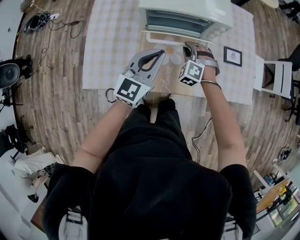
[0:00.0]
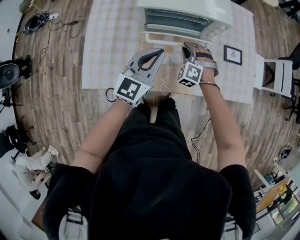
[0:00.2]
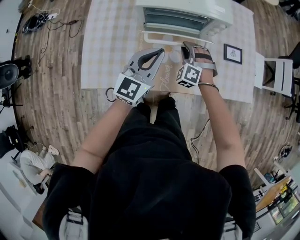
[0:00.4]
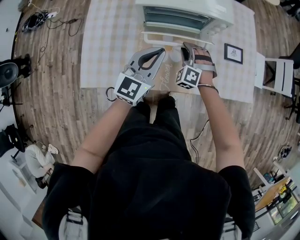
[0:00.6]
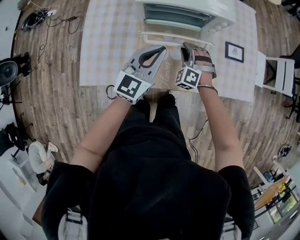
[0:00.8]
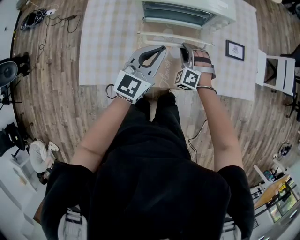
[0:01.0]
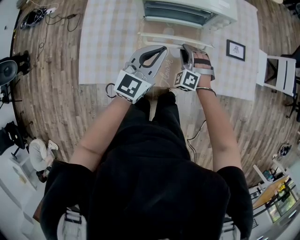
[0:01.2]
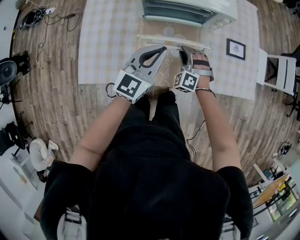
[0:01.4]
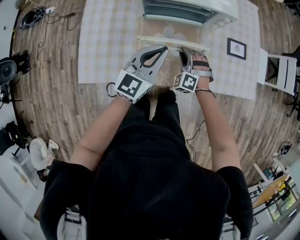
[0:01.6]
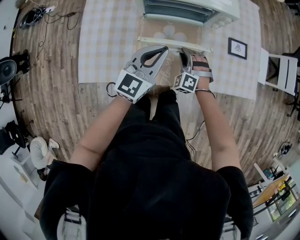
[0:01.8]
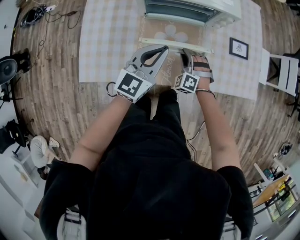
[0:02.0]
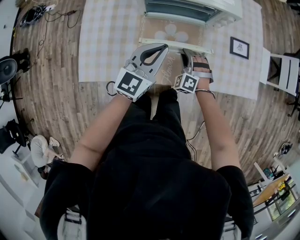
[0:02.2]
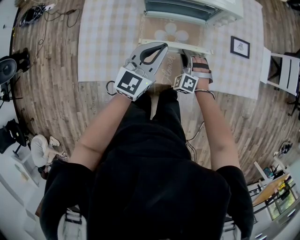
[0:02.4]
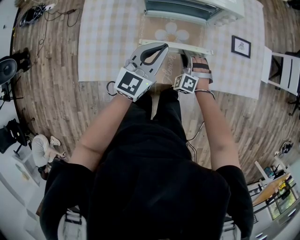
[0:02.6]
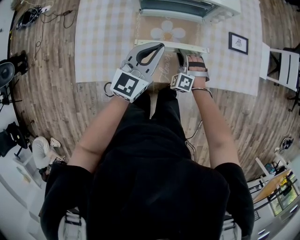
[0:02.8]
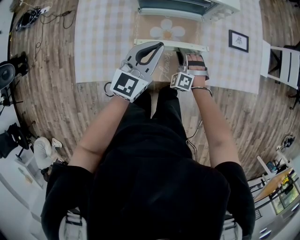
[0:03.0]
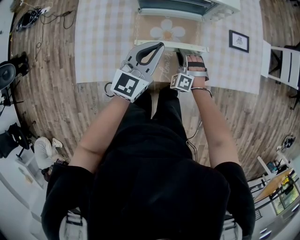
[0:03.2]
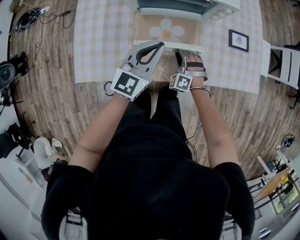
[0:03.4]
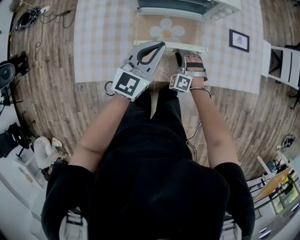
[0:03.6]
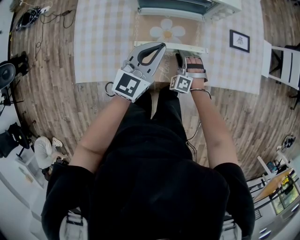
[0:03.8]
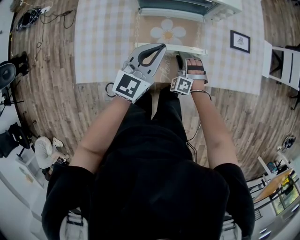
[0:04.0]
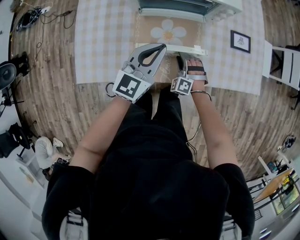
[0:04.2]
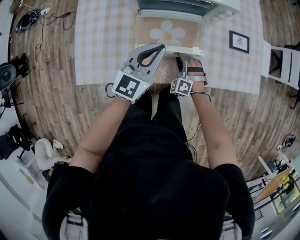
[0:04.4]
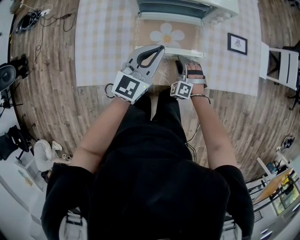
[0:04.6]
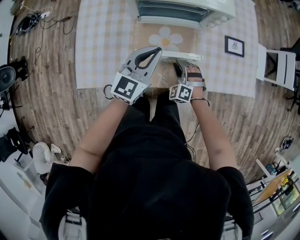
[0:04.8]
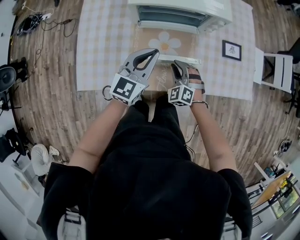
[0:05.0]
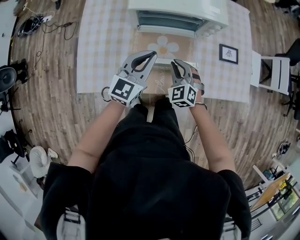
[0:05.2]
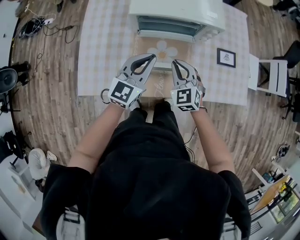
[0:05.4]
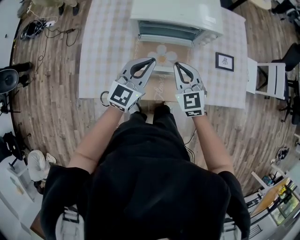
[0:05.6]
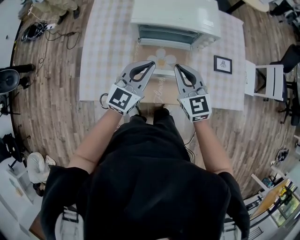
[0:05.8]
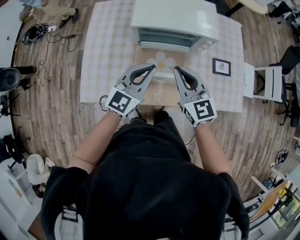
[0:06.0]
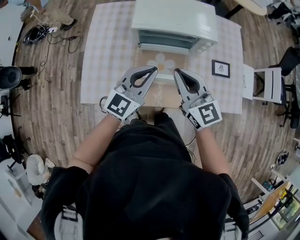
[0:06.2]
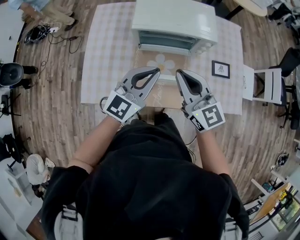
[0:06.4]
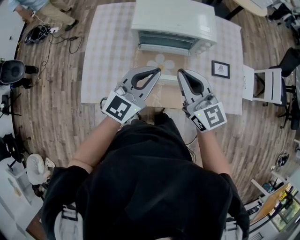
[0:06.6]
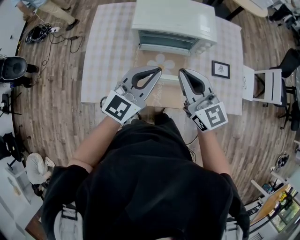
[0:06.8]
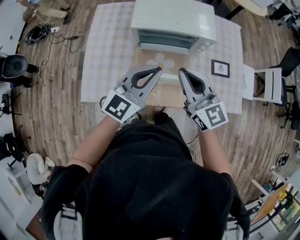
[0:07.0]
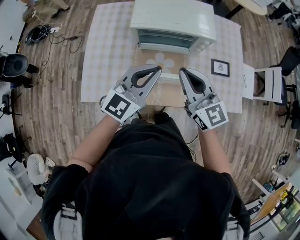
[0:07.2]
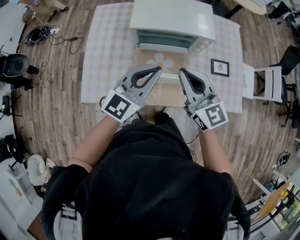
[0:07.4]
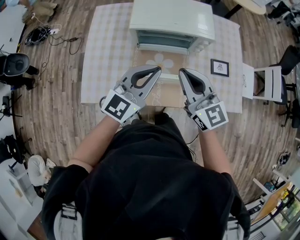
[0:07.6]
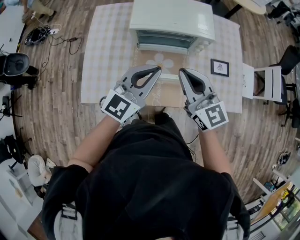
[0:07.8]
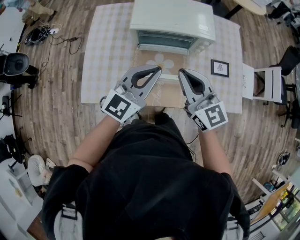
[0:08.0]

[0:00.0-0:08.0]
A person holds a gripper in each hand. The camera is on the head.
0:00.0 to 0:01.6: The right gripper goes roughly 10 cm downward and backward.
0:01.6 to 0:03.2: The right gripper heads downward, covering roughly 5 cm.
0:03.2 to 0:04.8: There are only small adjustments of the grippers.
0:04.8 to 0:06.4: The left gripper heads upward, covering roughly 15 cm. Meanwhile the right gripper heads upward, covering approximately 35 cm, points its fingers roughly 40 degrees further upward, and closes up.
0:06.4 to 0:08.0: The grippers stay close to where they were, moving slightly.

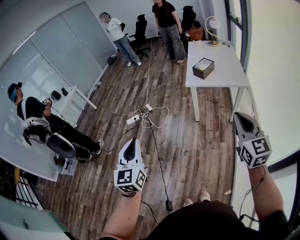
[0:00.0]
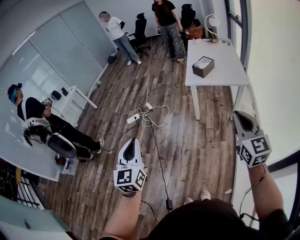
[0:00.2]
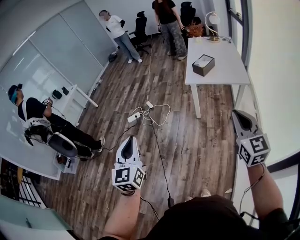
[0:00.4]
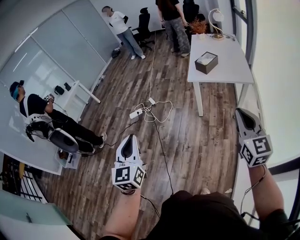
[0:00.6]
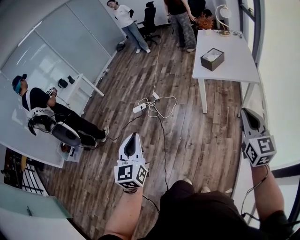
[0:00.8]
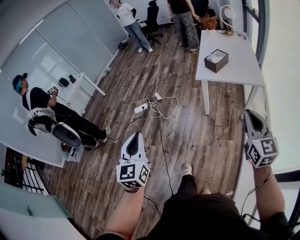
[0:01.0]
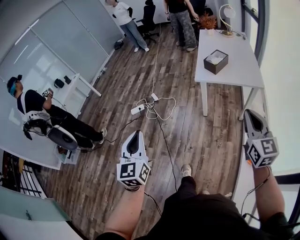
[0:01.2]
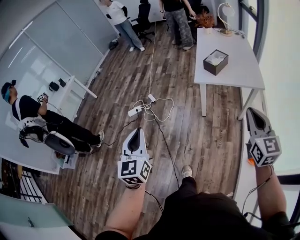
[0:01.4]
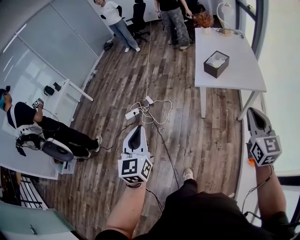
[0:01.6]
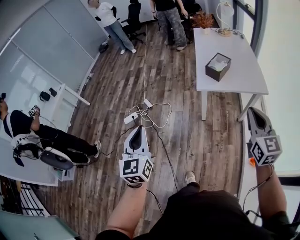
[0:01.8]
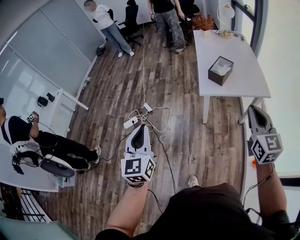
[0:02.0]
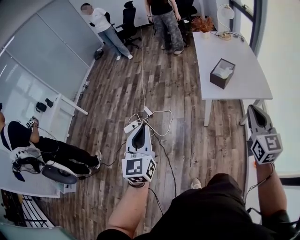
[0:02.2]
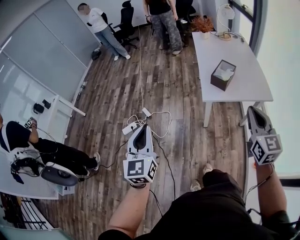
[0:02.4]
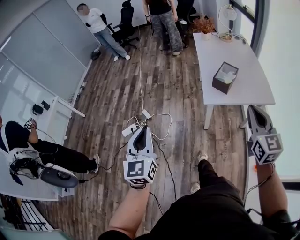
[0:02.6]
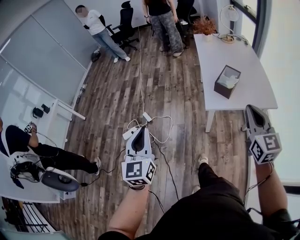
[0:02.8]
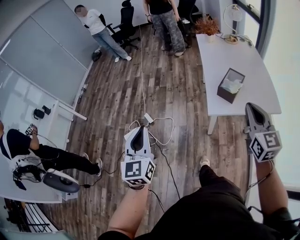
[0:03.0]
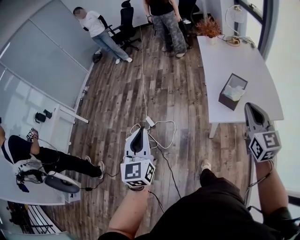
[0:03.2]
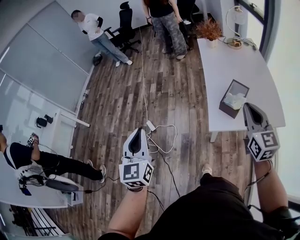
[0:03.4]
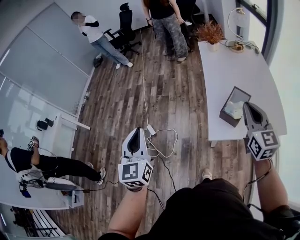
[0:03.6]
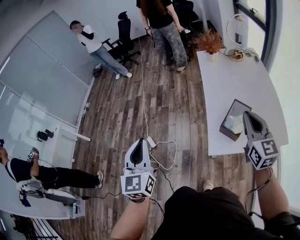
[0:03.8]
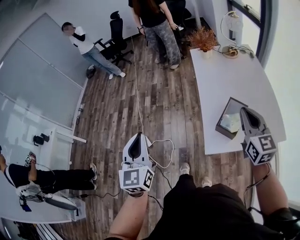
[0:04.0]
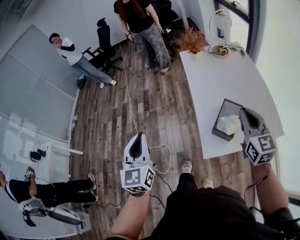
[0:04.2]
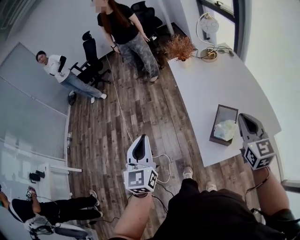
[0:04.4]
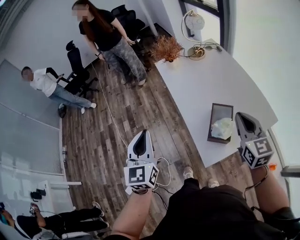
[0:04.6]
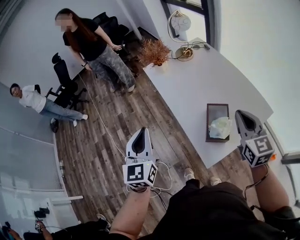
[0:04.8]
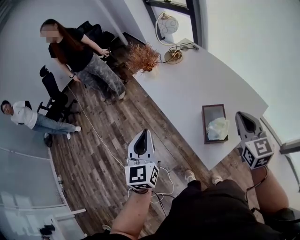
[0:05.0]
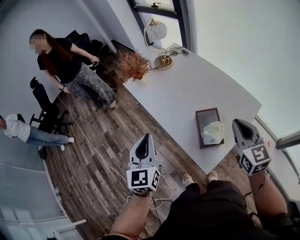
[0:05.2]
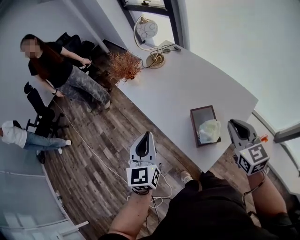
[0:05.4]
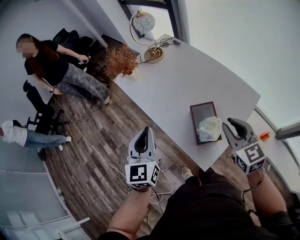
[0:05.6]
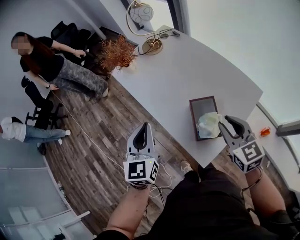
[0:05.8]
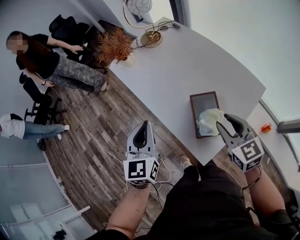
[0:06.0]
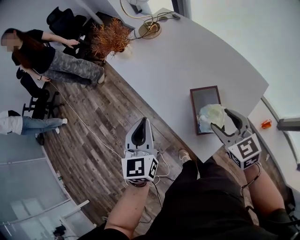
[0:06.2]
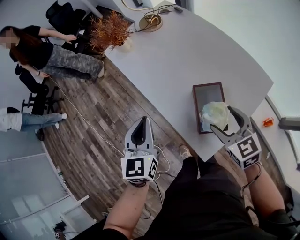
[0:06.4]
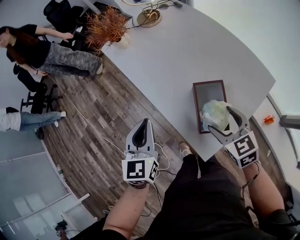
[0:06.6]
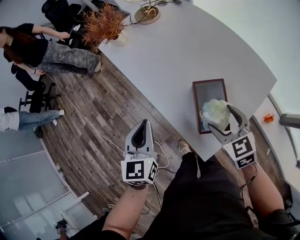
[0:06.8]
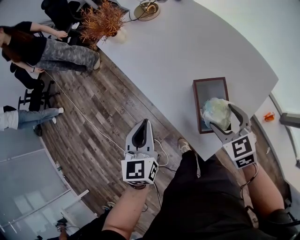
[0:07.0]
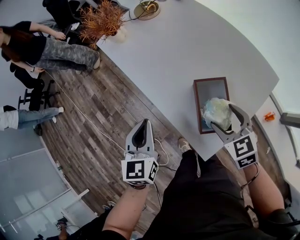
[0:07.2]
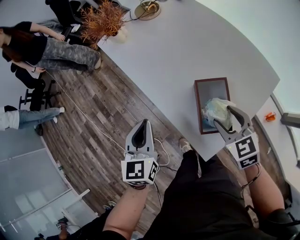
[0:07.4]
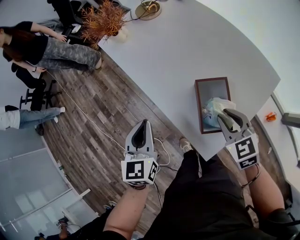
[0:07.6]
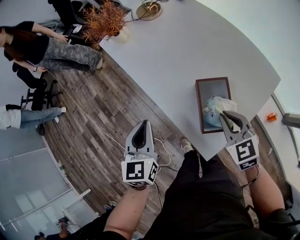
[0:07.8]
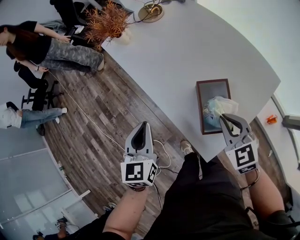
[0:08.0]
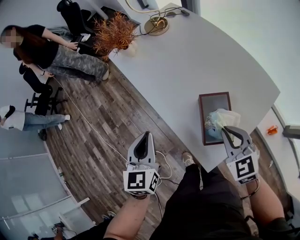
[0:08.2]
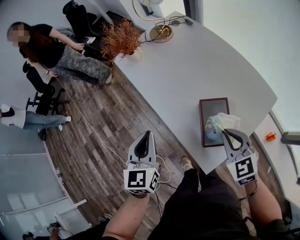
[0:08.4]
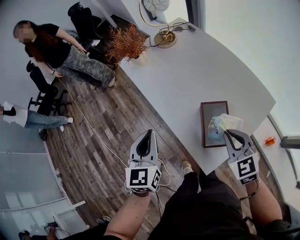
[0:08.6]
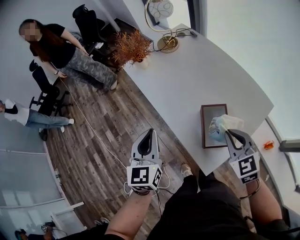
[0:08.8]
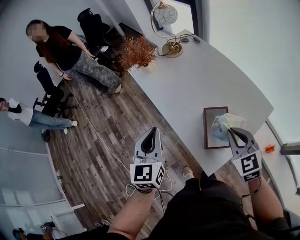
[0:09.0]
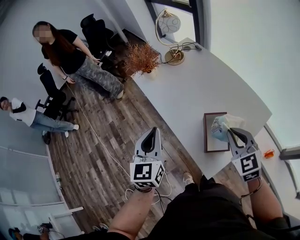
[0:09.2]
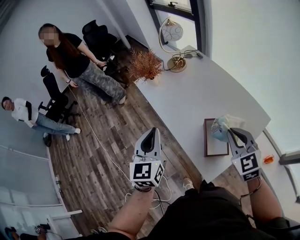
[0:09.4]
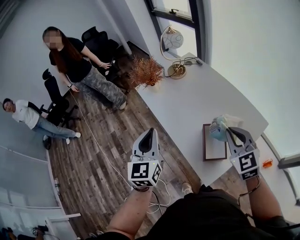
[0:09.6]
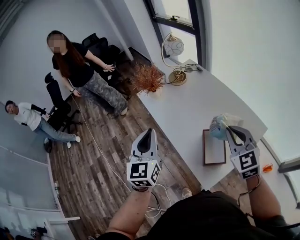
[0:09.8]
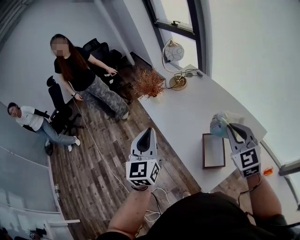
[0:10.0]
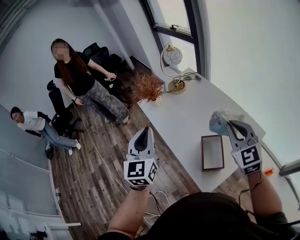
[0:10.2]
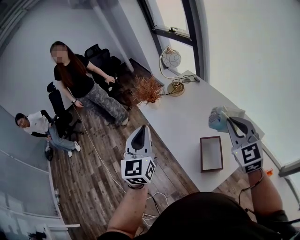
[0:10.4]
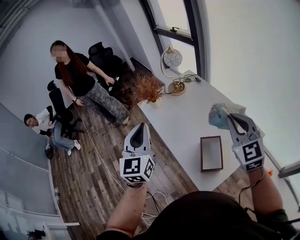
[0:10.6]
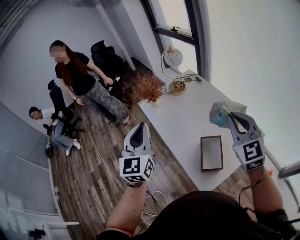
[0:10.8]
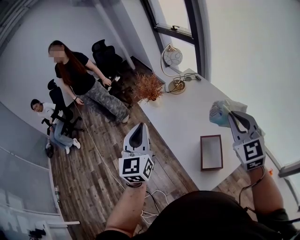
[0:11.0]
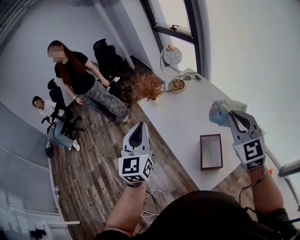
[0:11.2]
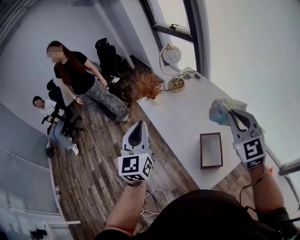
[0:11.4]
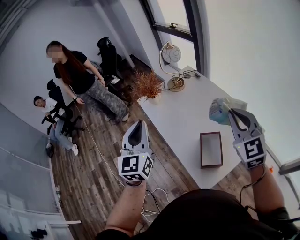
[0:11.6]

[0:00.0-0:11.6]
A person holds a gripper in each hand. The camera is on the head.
0:00.0 to 0:01.4: Both grippers travel together forward, roughly 20 cm.
0:01.4 to 0:02.8: Both grippers move forward, roughly 30 cm.
0:02.8 to 0:04.4: The two grippers go some 35 cm forward.
0:04.4 to 0:05.8: The right gripper is displaced downward by some 10 cm; the left gripper changes place by some 25 cm, and rotates some 30 degrees.
0:05.8 to 0:07.2: The grippers both shift downward by about 15 cm. The right gripper opens up.
0:07.2 to 0:08.8: The two grippers go approximately 10 cm upward. The right gripper closes up.
0:08.8 to 0:10.2: The two grippers go approximately 15 cm upward.
0:10.2 to 0:11.6: The grippers move only a little.
